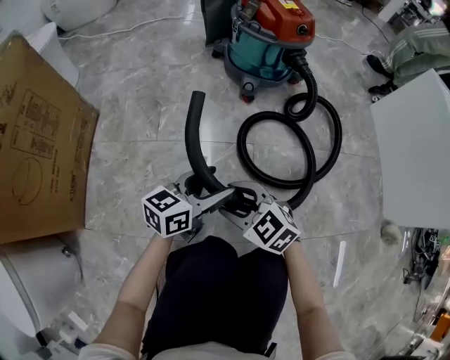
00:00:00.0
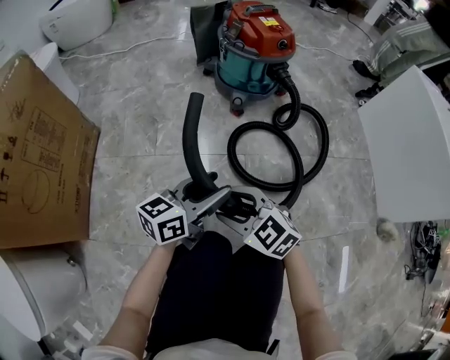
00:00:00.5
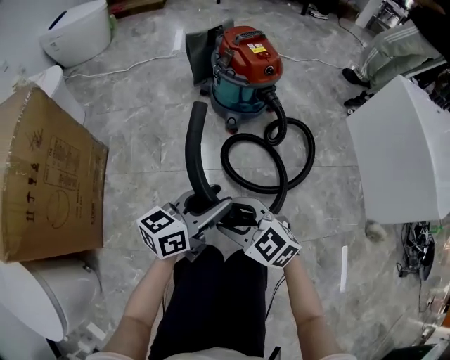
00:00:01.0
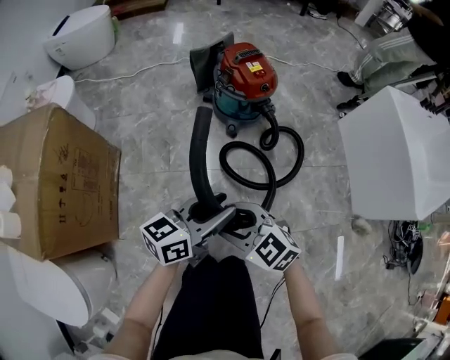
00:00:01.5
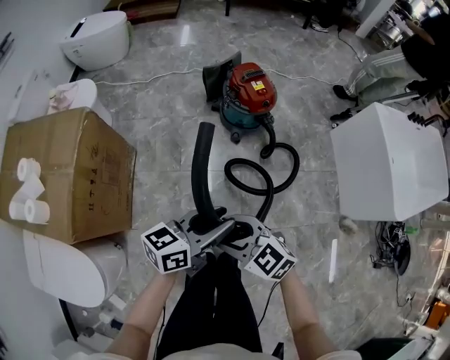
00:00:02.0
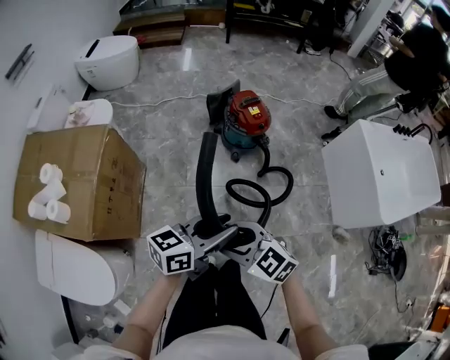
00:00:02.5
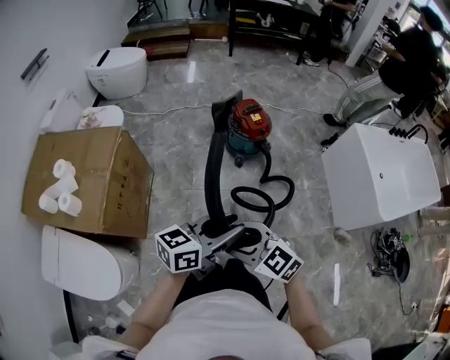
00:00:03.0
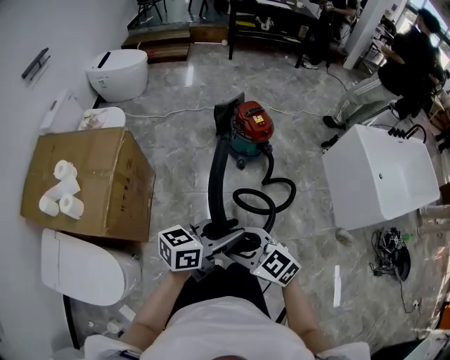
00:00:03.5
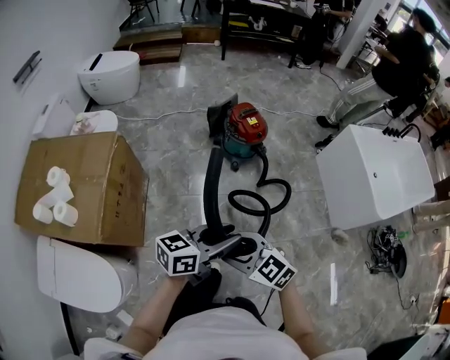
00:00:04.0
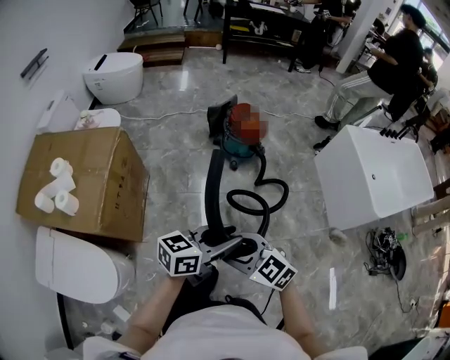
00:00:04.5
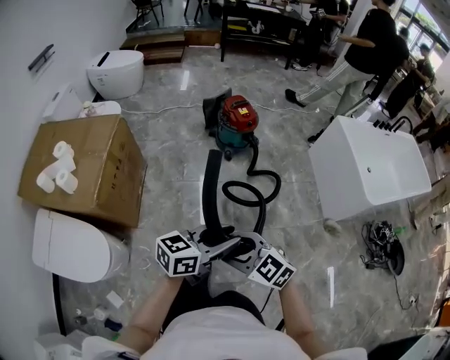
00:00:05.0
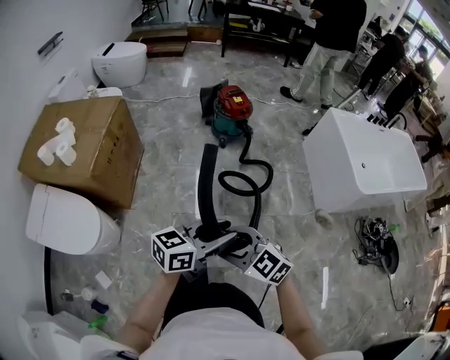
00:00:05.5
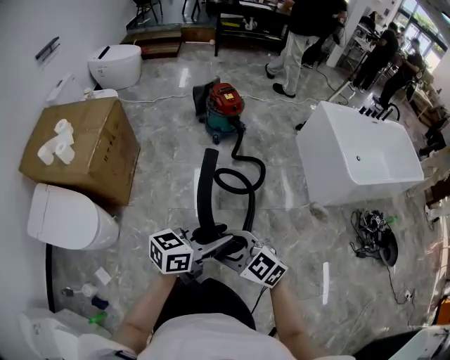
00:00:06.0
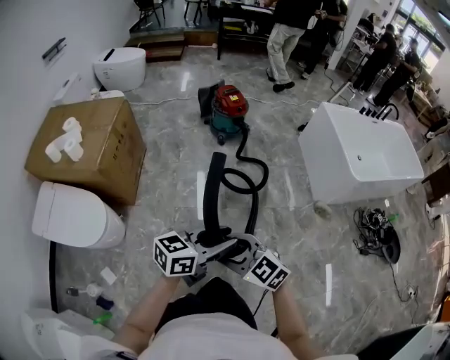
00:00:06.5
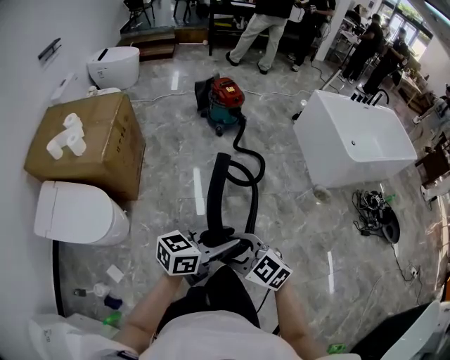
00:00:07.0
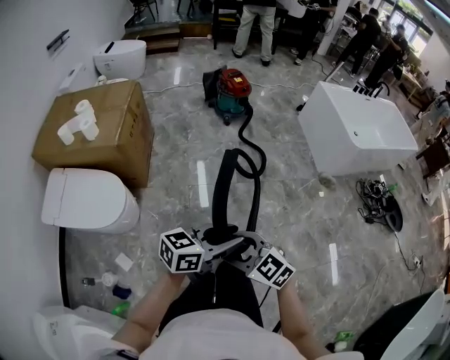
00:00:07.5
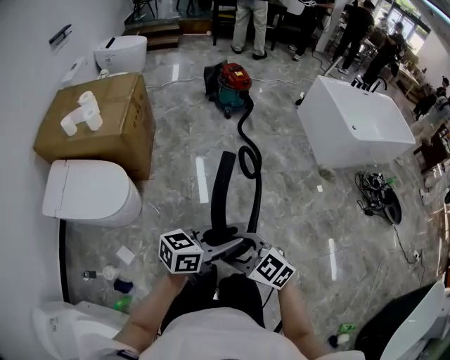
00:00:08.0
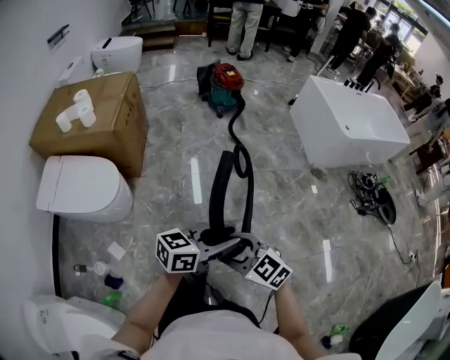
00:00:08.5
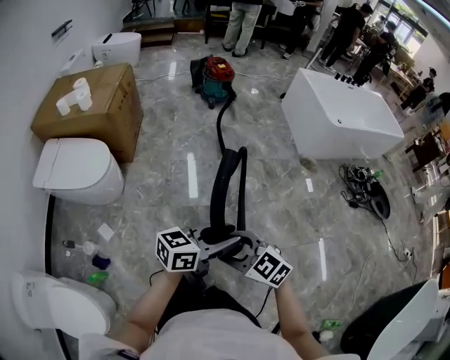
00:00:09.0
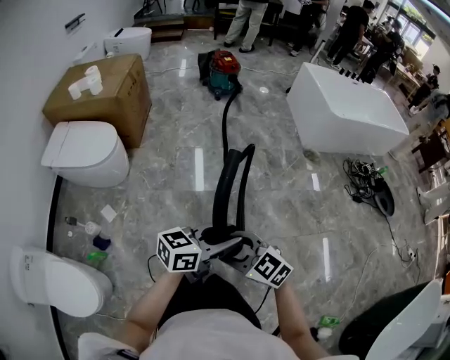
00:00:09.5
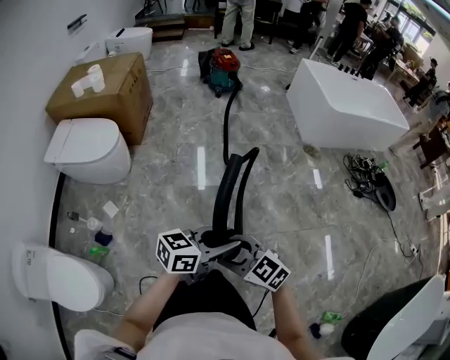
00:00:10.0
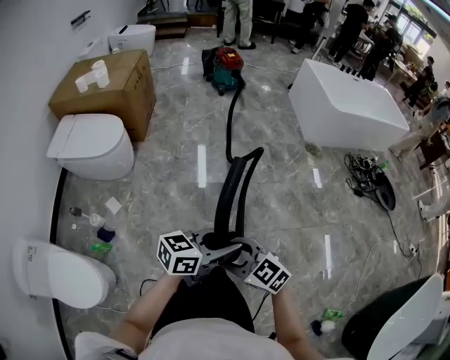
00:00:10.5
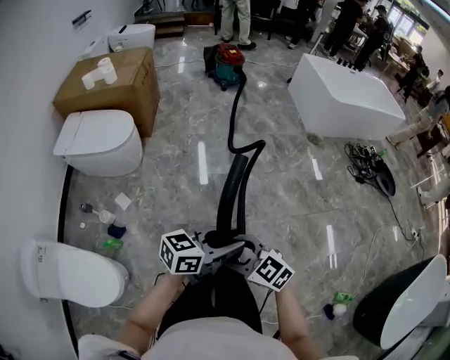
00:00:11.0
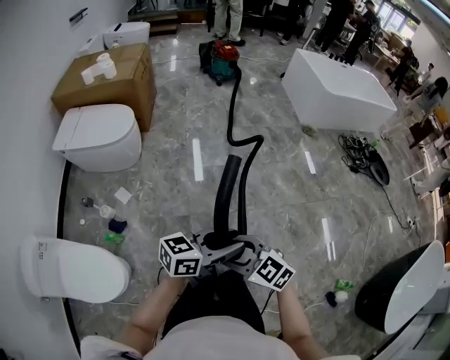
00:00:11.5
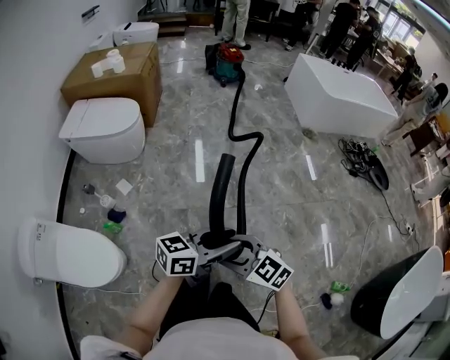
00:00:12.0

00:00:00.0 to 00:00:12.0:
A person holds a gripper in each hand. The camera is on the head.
00:00:00.0 to 00:00:02.0: The two grippers go some 50 cm upward. The left gripper closes up.
00:00:02.0 to 00:00:04.0: The grippers both shift upward and backward by some 15 cm.
00:00:04.0 to 00:00:06.0: The left gripper shifts by roughly 35 cm. The right gripper moves roughly 35 cm.
00:00:06.0 to 00:00:08.0: The left gripper changes place by about 35 cm; the right gripper changes place by approximately 35 cm.
00:00:08.0 to 00:00:10.0: The left gripper shifts by approximately 40 cm, while the right gripper shifts by roughly 35 cm.
00:00:10.0 to 00:00:12.0: The right gripper moves roughly 25 cm. Meanwhile the left gripper shifts by some 30 cm.

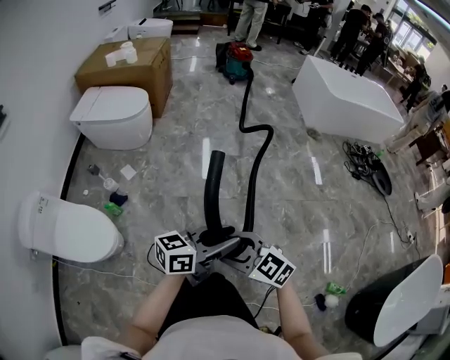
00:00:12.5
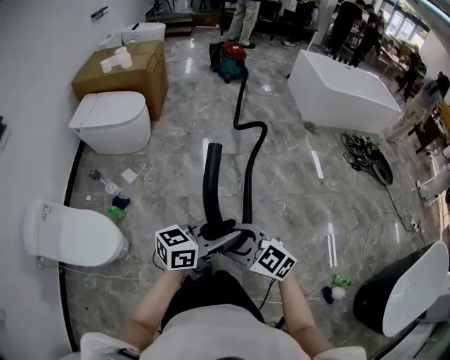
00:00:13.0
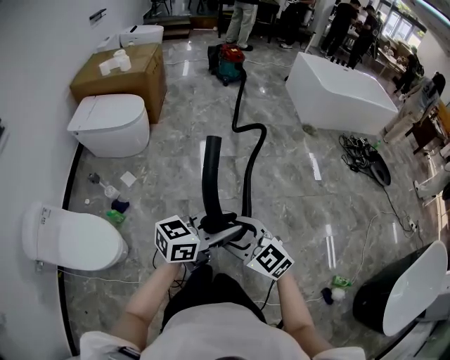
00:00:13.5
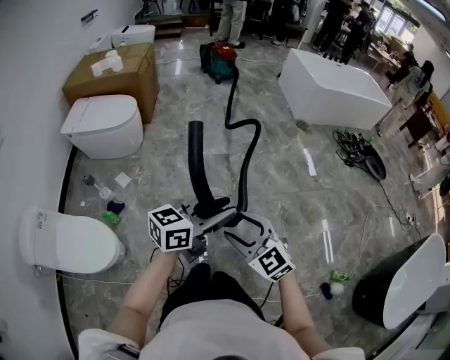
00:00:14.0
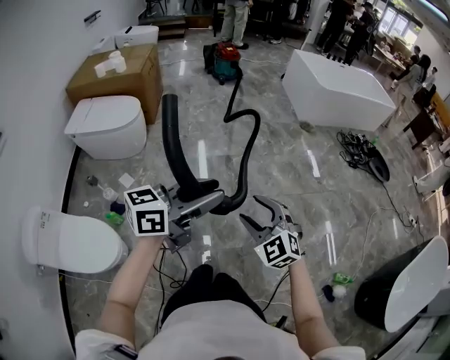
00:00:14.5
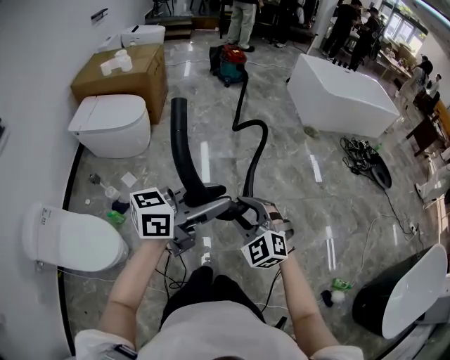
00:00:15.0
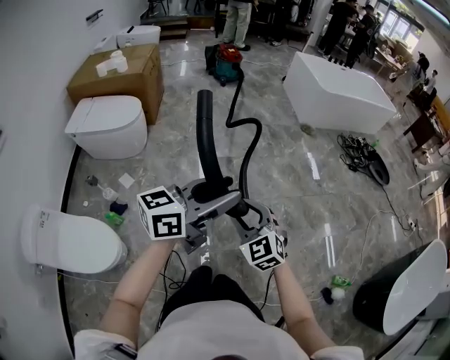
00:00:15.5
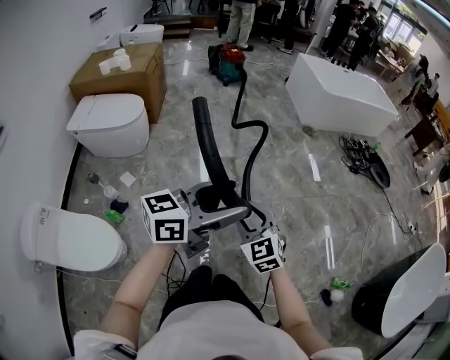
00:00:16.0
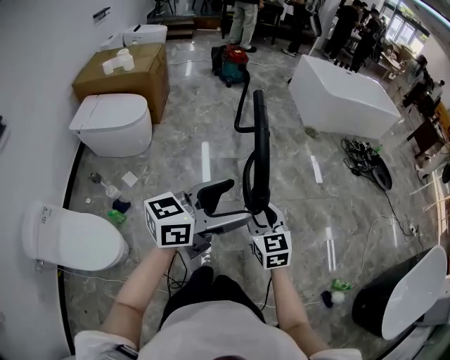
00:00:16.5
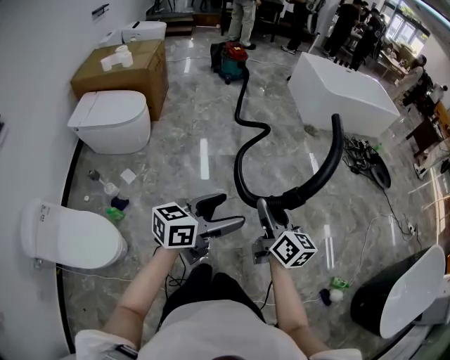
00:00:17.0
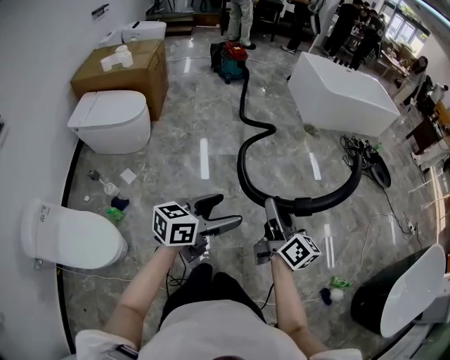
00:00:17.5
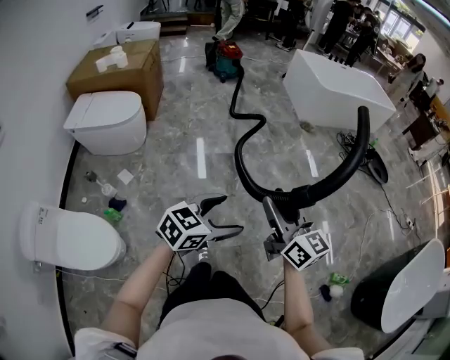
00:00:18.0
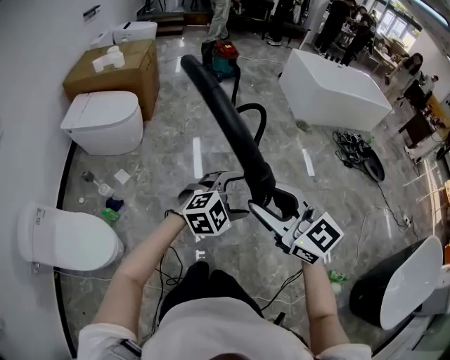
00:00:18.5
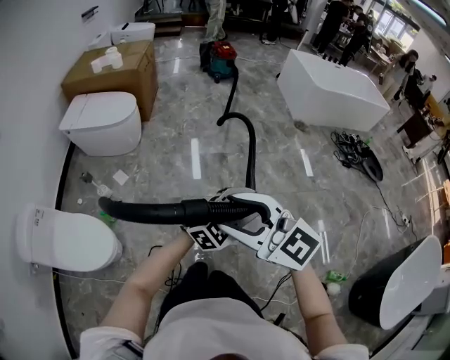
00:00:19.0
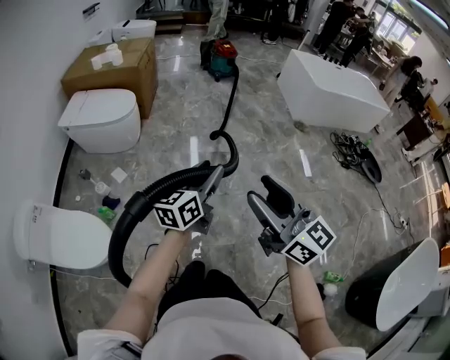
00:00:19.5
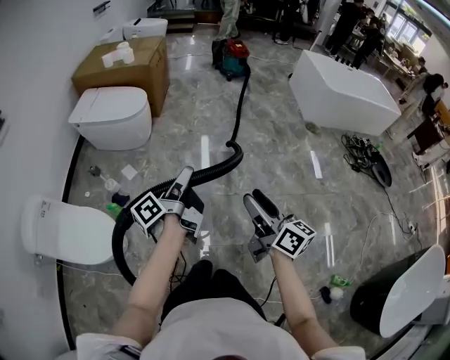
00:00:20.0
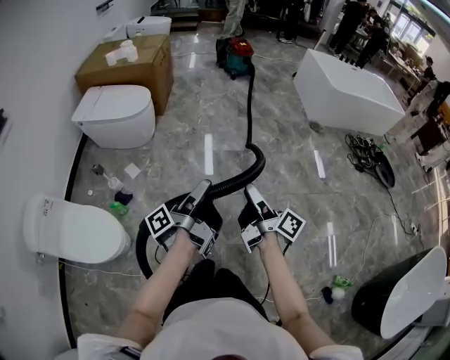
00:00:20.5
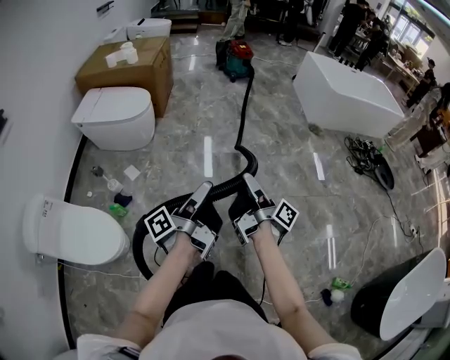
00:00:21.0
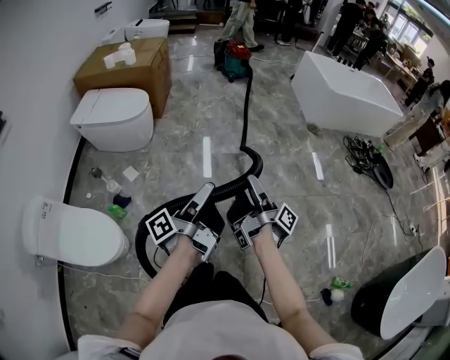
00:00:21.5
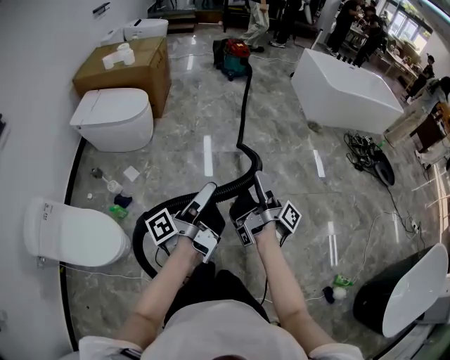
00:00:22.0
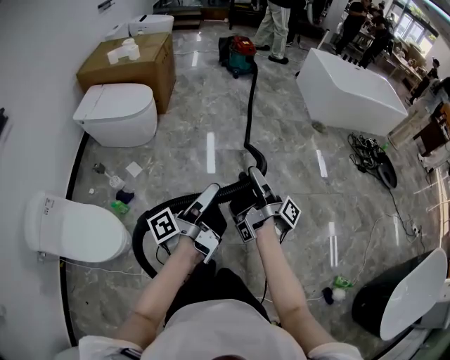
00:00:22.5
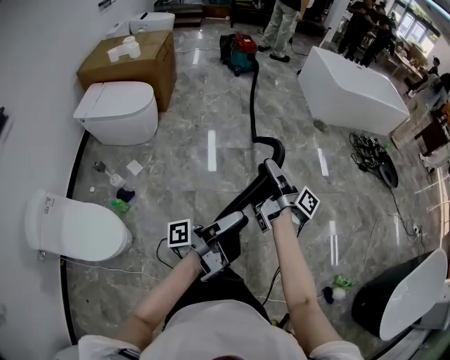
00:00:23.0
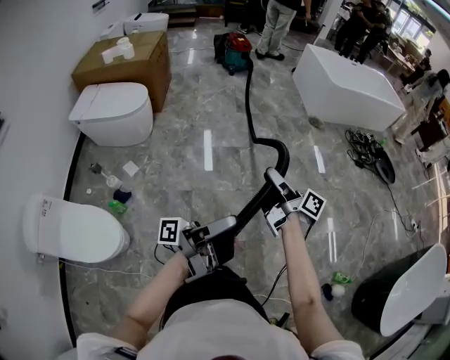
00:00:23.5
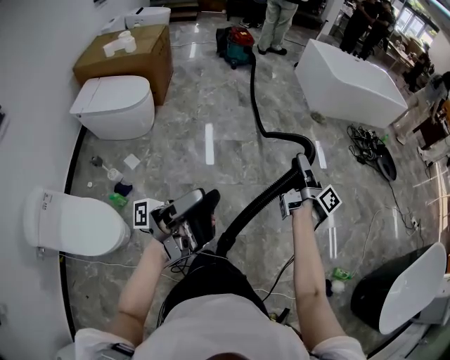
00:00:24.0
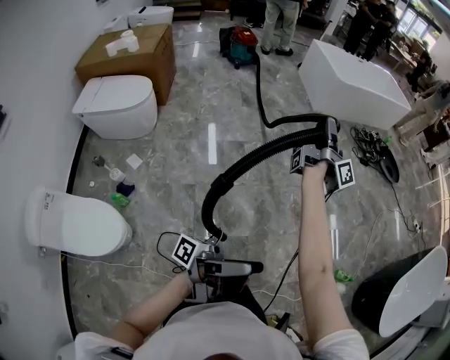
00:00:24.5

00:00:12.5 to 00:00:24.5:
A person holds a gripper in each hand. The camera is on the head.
00:00:12.5 to 00:00:14.5: The right gripper changes place by about 10 cm, and rotates approximately 40 degrees. Meanwhile the left gripper travels upward by about 10 cm.
00:00:14.5 to 00:00:16.5: The left gripper opens up. The right gripper changes its angle by about 40 degrees.
00:00:16.5 to 00:00:18.5: The left gripper heads downward, covering about 15 cm, and rolls clockwise, seen from behind, by roughly 50 degrees, while the right gripper moves upward, about 15 cm, and turns by some 30 degrees.
00:00:18.5 to 00:00:20.5: The left gripper shifts about 15 cm to the left, rotates around the line of its fingers by about 120 degrees, counterclockwise from behind, and closes. Meanwhile the right gripper goes some 20 cm downward and forward, and rolls clockwise, seen from behind, by roughly 80 degrees.
00:00:20.5 to 00:00:22.5: The right gripper swivels approximately 30 degrees.
00:00:22.5 to 00:00:24.5: The right gripper ends up roughly 25 cm from where it was, and rotates about 40 degrees. Meanwhile the left gripper shifts by approximately 20 cm, and changes its angle by about 60 degrees.

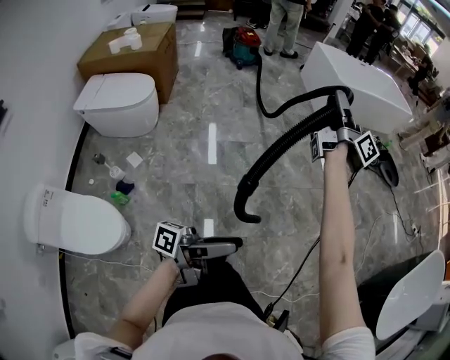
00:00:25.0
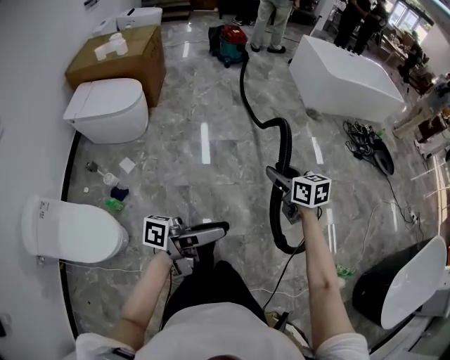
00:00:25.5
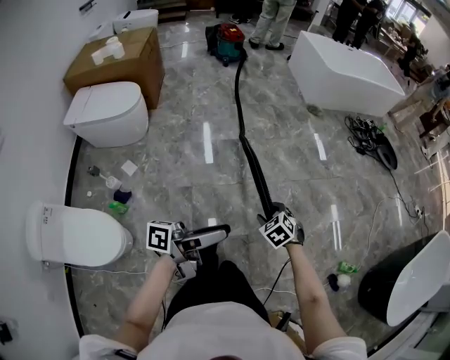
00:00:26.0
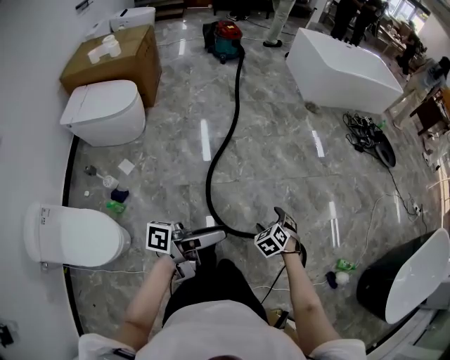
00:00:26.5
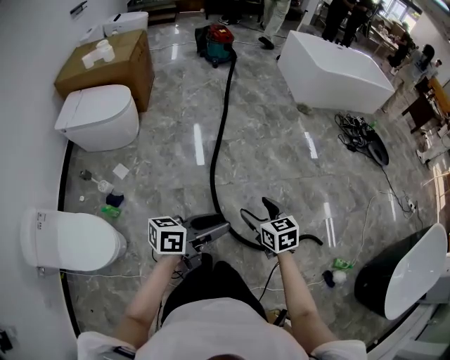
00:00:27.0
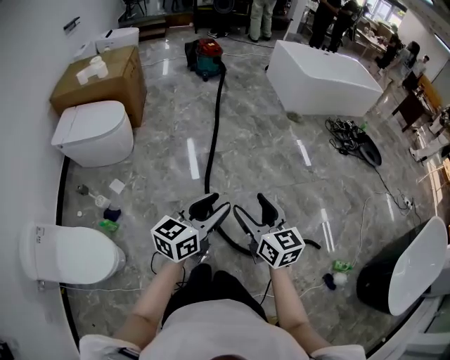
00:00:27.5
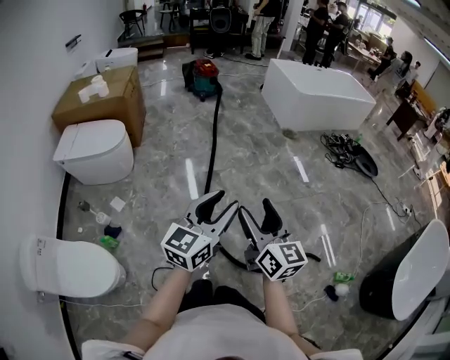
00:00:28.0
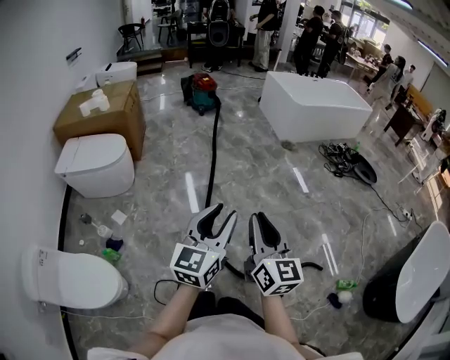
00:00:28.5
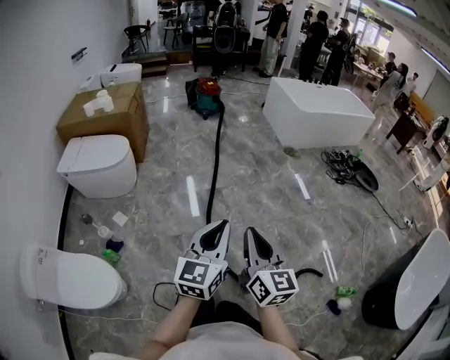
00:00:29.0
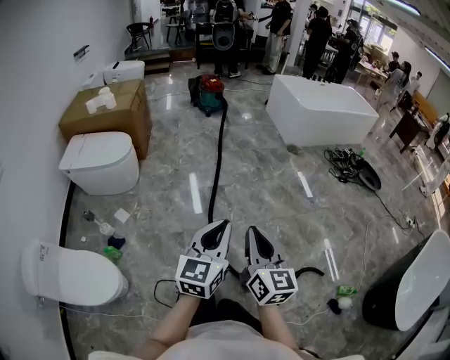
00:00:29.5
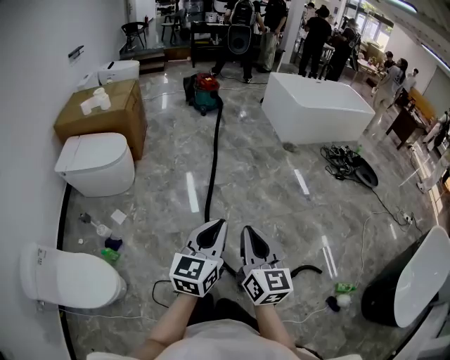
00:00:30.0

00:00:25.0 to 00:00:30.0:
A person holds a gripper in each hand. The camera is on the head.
00:00:25.0 to 00:00:27.5: The right gripper is displaced backward and downward by some 35 cm, twists about 60 degrees counterclockwise, seen from behind, and opens up; the left gripper goes some 10 cm forward, and rotates around the line of its fingers by about 60 degrees, clockwise from behind.
00:00:27.5 to 00:00:30.0: Both grippers travel together upward, some 5 cm. The right gripper closes. The left gripper swivels approximately 20 degrees, and closes up.
